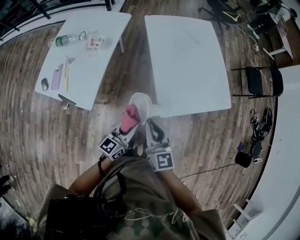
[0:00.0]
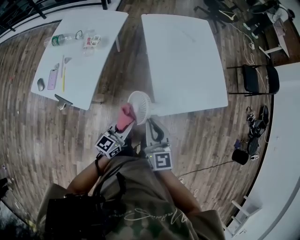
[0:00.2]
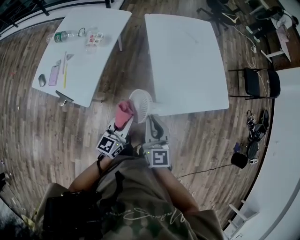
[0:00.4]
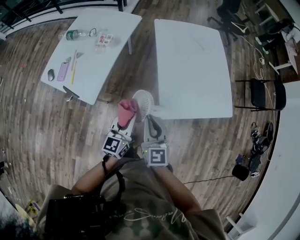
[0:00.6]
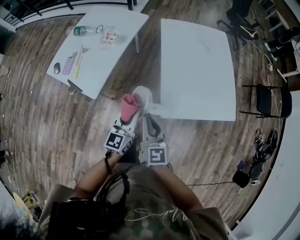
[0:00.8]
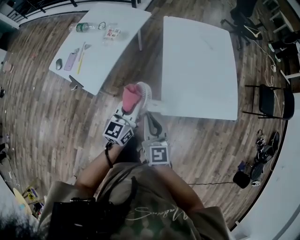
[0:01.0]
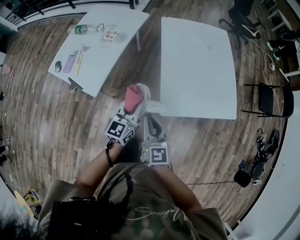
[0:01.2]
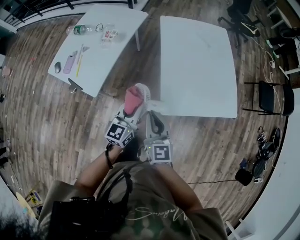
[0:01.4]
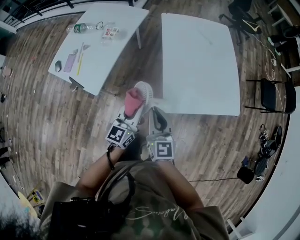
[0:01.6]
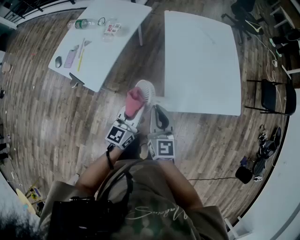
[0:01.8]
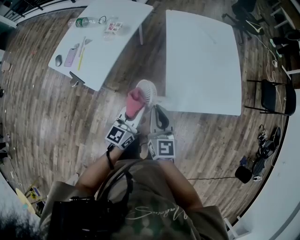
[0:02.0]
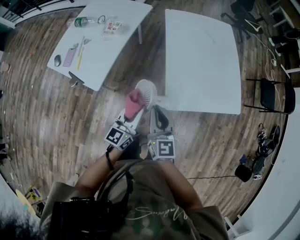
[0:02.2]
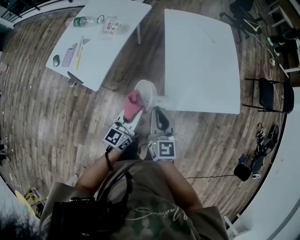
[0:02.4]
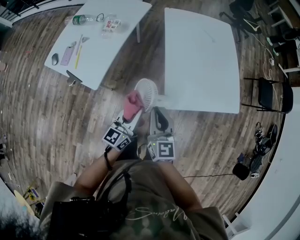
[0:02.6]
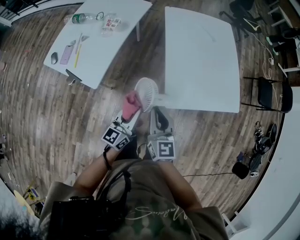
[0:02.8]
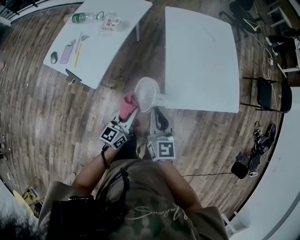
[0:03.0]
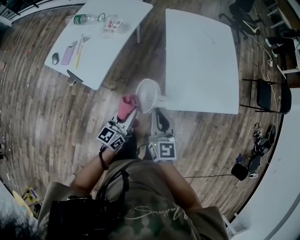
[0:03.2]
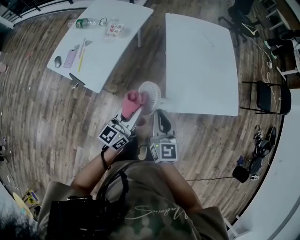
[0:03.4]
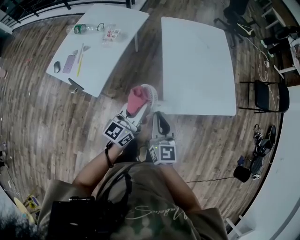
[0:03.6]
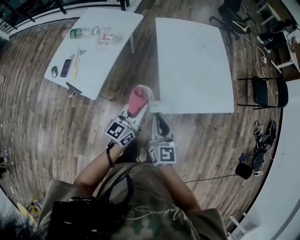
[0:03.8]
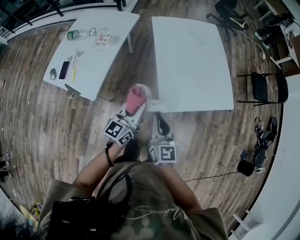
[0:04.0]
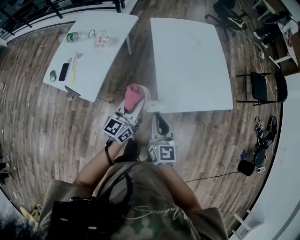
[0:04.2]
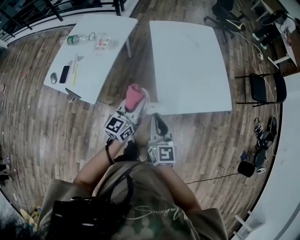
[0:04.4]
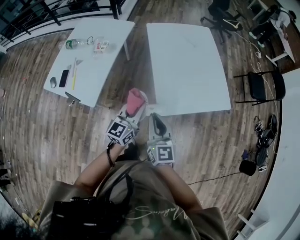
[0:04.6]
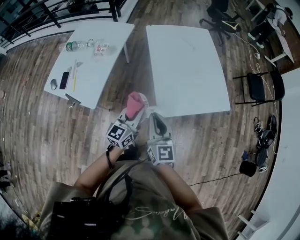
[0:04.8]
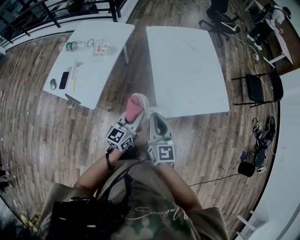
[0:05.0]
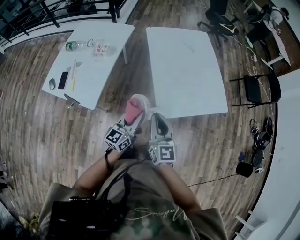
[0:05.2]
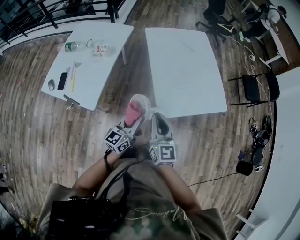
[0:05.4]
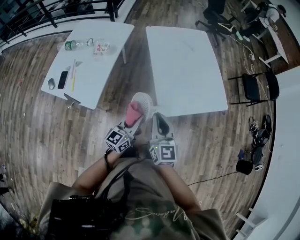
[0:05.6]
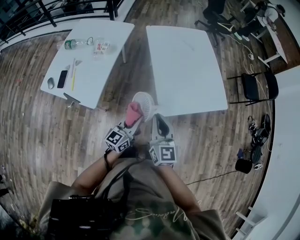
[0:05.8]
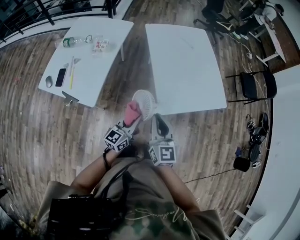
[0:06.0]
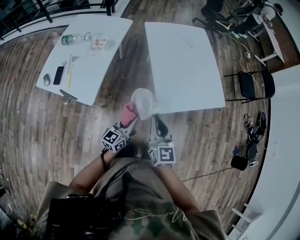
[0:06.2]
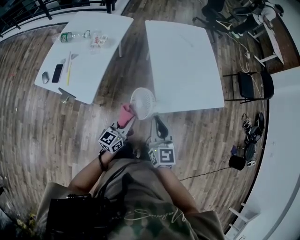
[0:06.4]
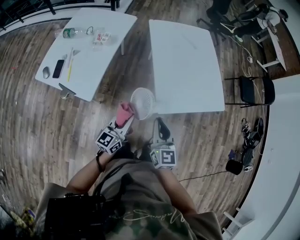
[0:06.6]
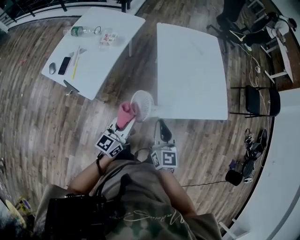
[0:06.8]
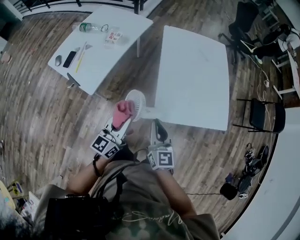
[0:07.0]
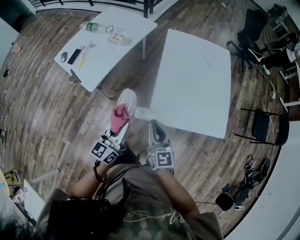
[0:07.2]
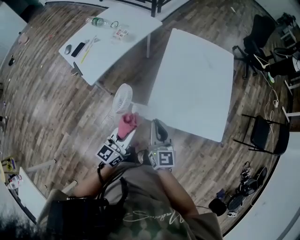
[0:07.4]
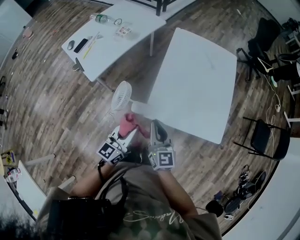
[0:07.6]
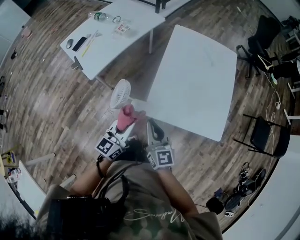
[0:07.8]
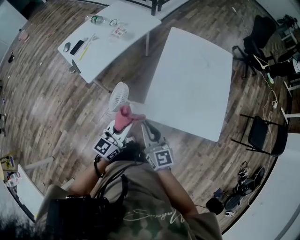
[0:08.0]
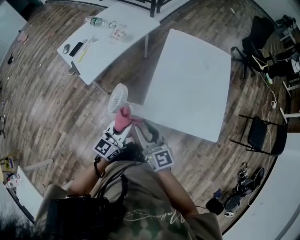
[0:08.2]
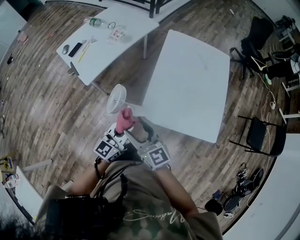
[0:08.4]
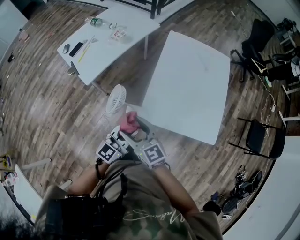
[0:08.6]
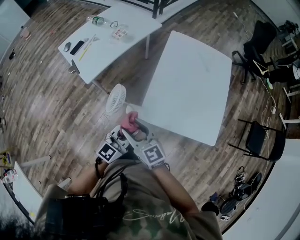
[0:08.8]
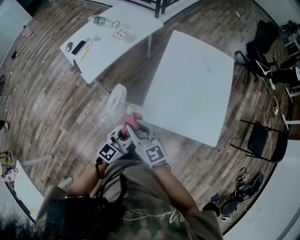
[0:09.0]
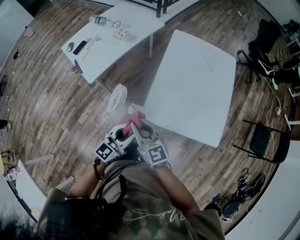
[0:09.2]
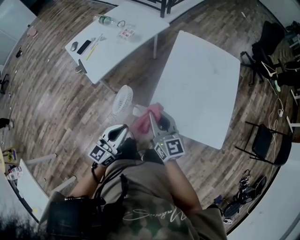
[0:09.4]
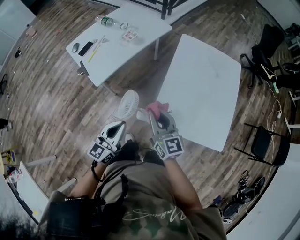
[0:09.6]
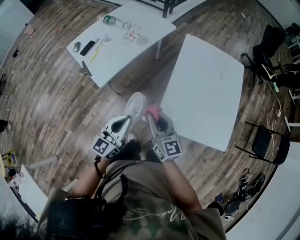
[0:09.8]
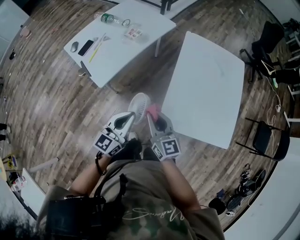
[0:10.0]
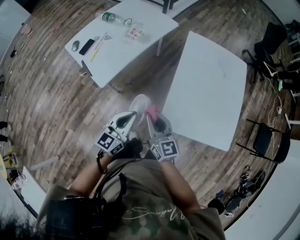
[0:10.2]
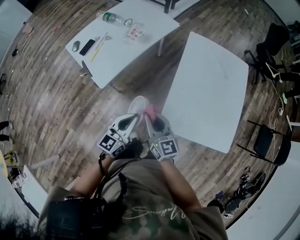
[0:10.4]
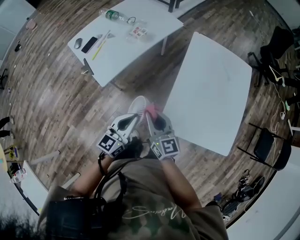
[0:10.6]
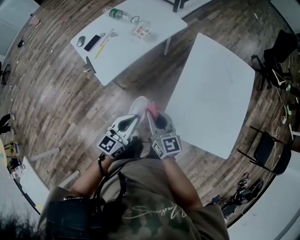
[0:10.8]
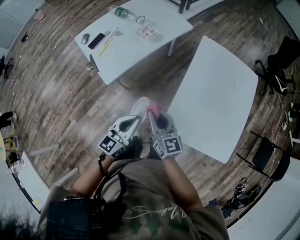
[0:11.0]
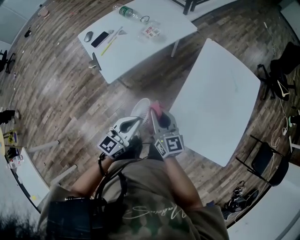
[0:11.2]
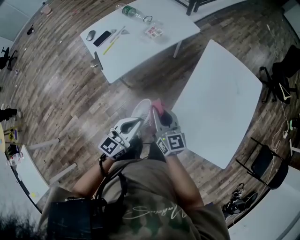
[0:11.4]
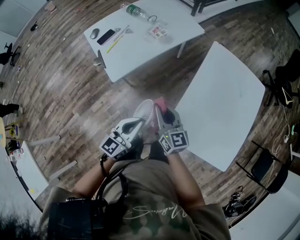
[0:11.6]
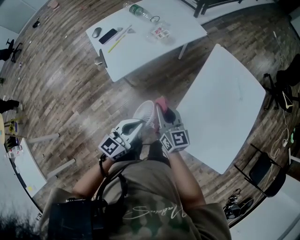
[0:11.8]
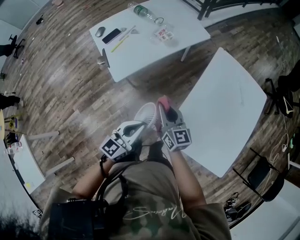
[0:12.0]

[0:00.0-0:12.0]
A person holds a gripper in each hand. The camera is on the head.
0:00.0 to 0:01.6: The left gripper swivels approximately 20 degrees.
0:01.6 to 0:03.0: The left gripper travels downward by approximately 5 cm.
0:03.0 to 0:04.4: The left gripper heads upward, forward and to the right, covering about 15 cm.
0:04.4 to 0:06.0: The left gripper travels downward and backward by approximately 10 cm.
0:06.0 to 0:07.6: The left gripper changes place by roughly 15 cm, and changes its angle by approximately 30 degrees; the right gripper shifts by approximately 15 cm, and rotates roughly 30 degrees.
0:07.6 to 0:09.0: The right gripper moves to the left, roughly 10 cm, swivels about 30 degrees, and opens, then closes again.
0:09.0 to 0:10.4: The left gripper shifts roughly 20 cm to the left and forward; the right gripper heads forward, covering roughly 10 cm.
0:10.4 to 0:12.0: The right gripper shifts about 10 cm forward.

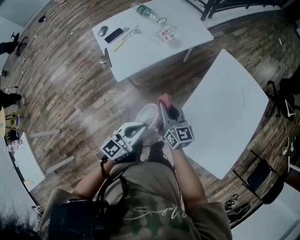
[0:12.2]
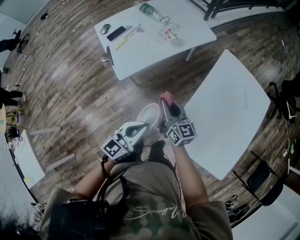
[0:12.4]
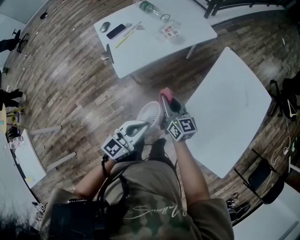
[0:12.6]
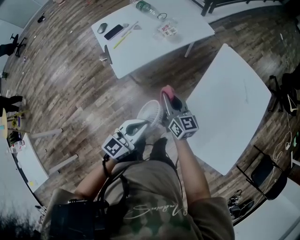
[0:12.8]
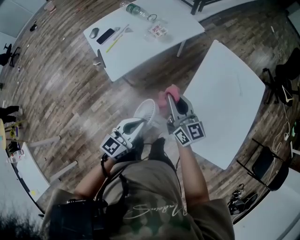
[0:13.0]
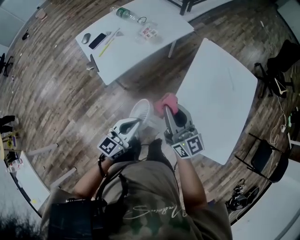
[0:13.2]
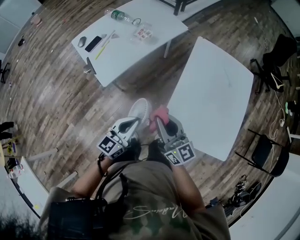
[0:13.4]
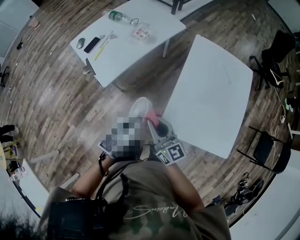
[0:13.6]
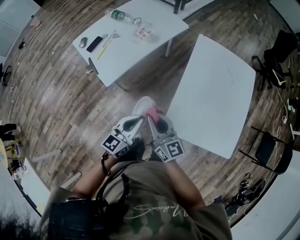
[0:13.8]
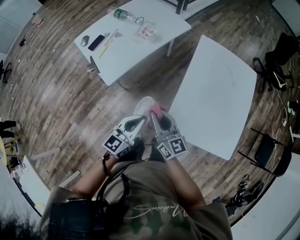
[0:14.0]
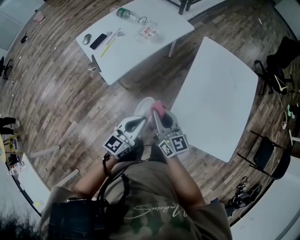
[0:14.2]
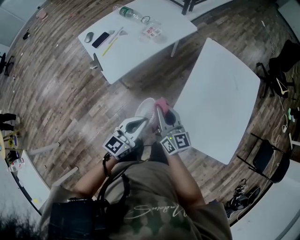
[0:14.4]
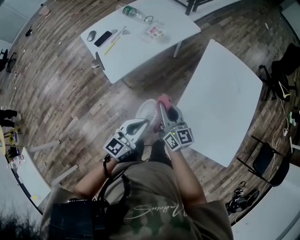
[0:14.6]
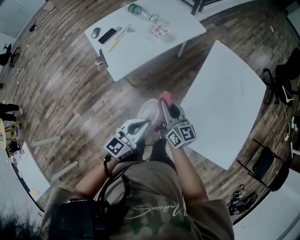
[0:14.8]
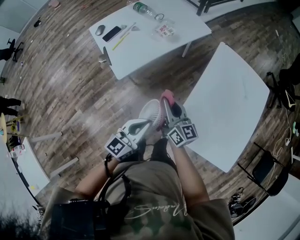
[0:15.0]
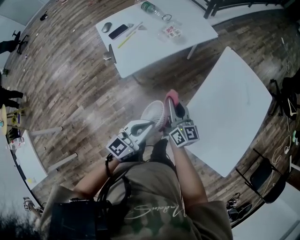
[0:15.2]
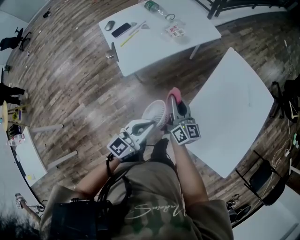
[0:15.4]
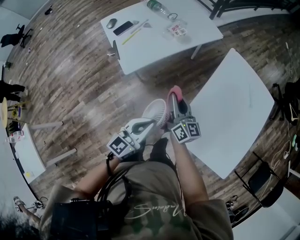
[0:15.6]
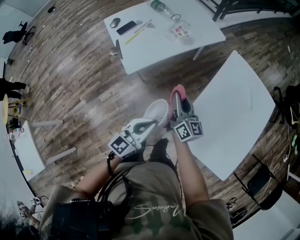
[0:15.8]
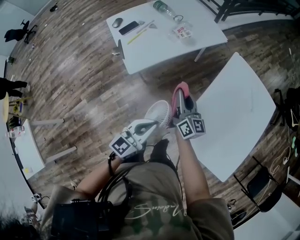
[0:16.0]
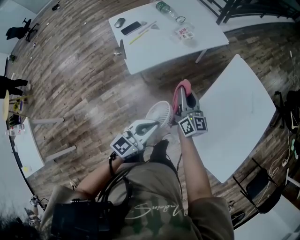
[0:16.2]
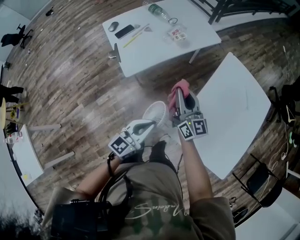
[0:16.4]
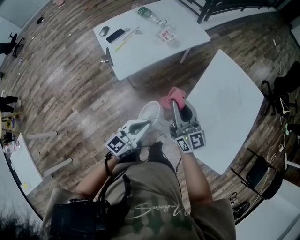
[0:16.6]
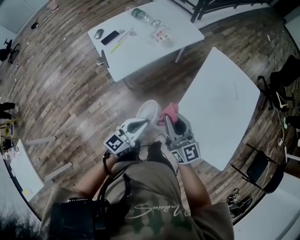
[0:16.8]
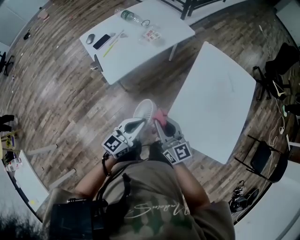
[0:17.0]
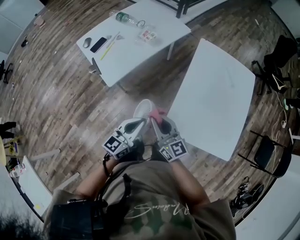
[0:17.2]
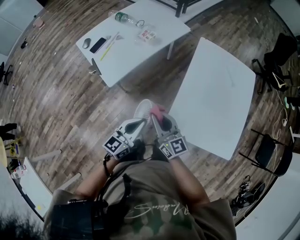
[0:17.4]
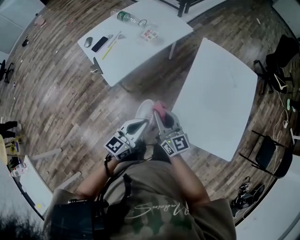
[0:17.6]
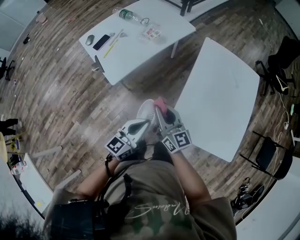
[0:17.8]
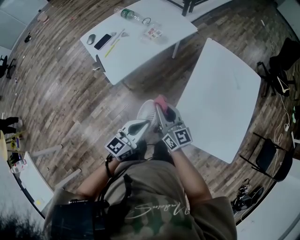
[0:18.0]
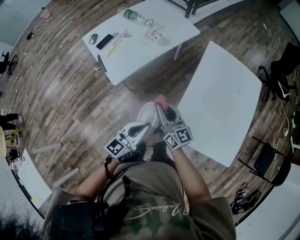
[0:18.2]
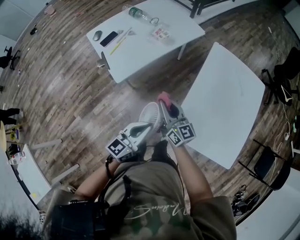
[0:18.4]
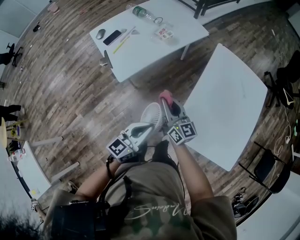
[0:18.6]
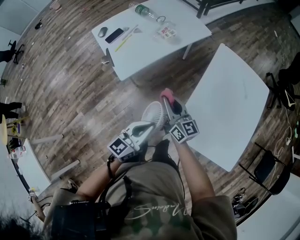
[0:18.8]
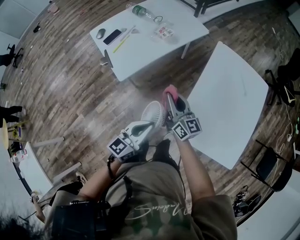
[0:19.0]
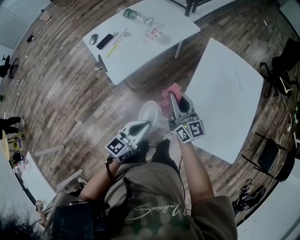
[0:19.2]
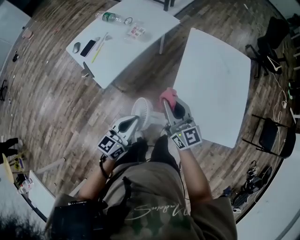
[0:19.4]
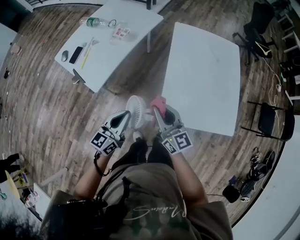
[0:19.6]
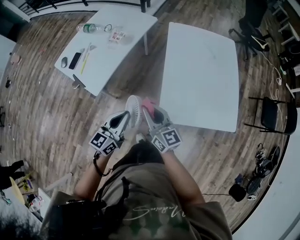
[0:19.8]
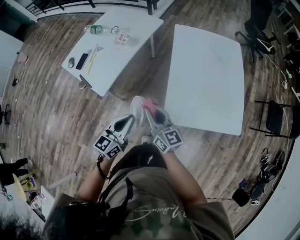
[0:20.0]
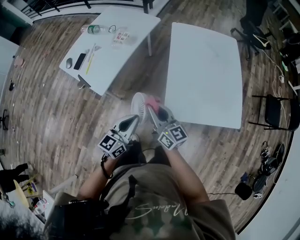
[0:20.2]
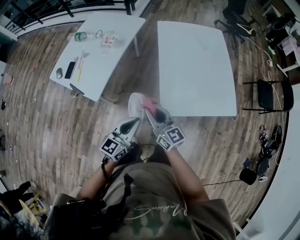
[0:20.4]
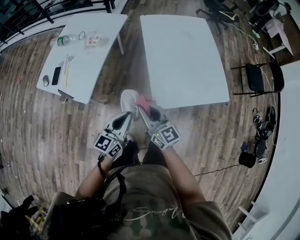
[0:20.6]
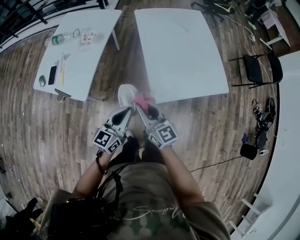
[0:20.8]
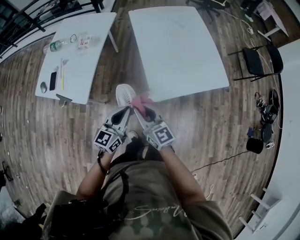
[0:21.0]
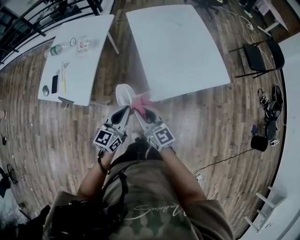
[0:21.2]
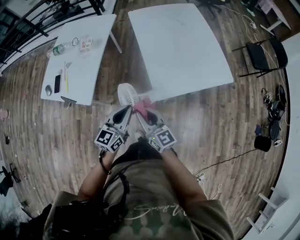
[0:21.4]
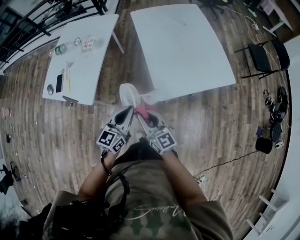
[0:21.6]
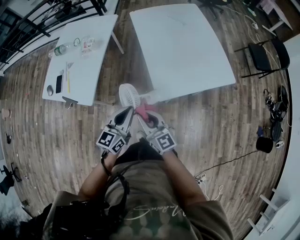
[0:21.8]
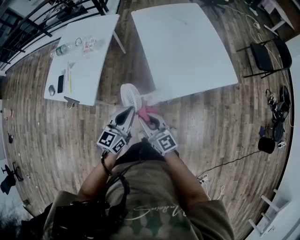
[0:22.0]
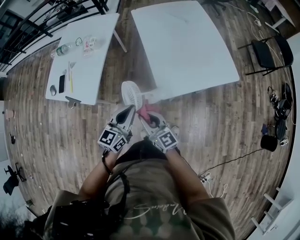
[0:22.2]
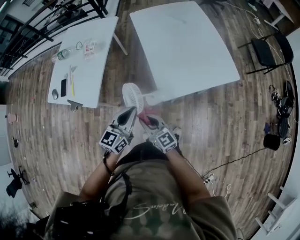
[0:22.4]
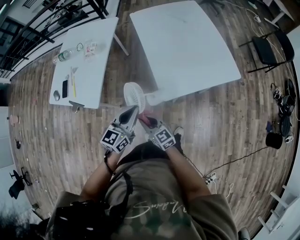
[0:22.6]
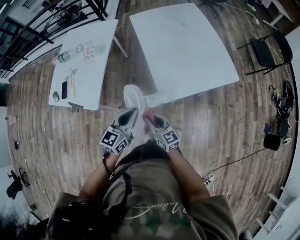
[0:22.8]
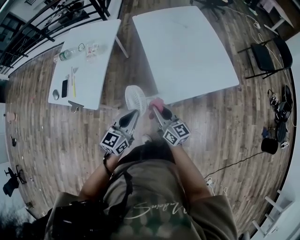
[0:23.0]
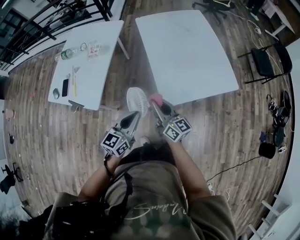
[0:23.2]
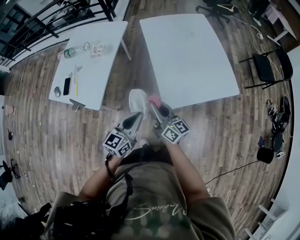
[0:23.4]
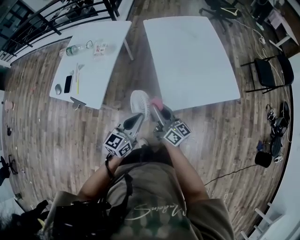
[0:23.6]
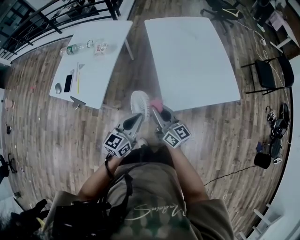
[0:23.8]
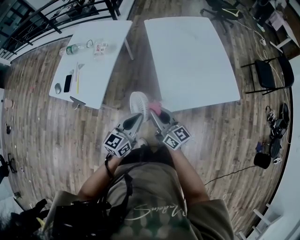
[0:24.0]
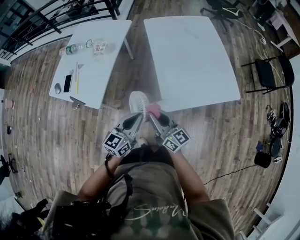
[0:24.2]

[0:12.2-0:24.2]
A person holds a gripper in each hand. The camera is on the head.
0:12.2 to 0:13.8: The right gripper travels backward by roughly 10 cm.
0:13.8 to 0:15.2: The right gripper travels forward by roughly 10 cm.
0:15.2 to 0:16.6: The right gripper travels upward by roughly 10 cm, and turns by about 20 degrees.
0:16.6 to 0:18.2: The right gripper shifts about 5 cm downward, and travels backward and back again, about 10 cm each way.
0:18.2 to 0:19.8: The right gripper is displaced backward by roughly 5 cm.
0:19.8 to 0:21.2: The right gripper moves backward, roughly 10 cm.
0:21.2 to 0:22.6: The right gripper goes roughly 10 cm downward.
0:22.6 to 0:24.2: The right gripper is displaced upward, forward and to the right by about 15 cm, and swivels about 20 degrees.
